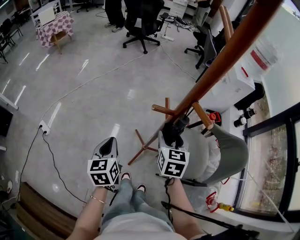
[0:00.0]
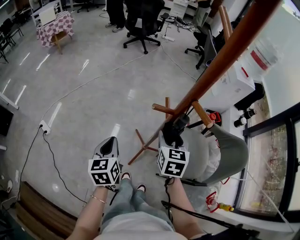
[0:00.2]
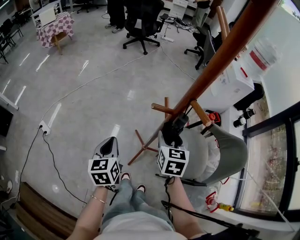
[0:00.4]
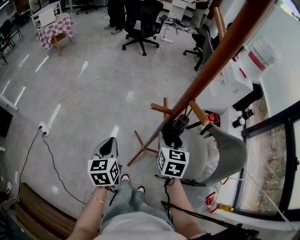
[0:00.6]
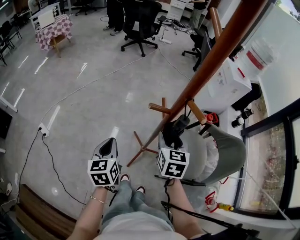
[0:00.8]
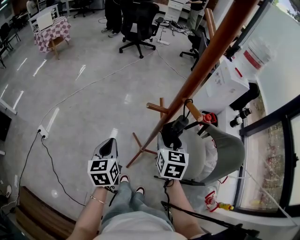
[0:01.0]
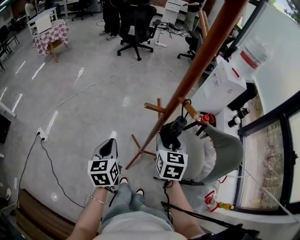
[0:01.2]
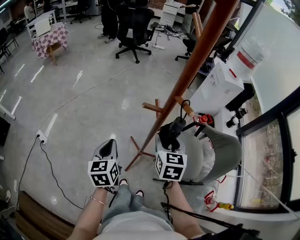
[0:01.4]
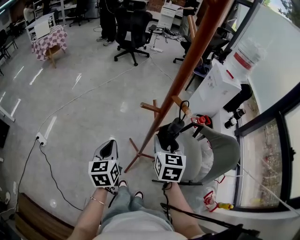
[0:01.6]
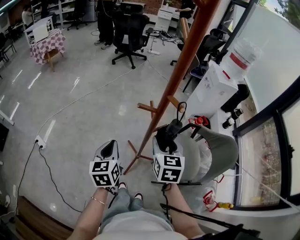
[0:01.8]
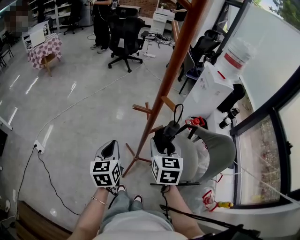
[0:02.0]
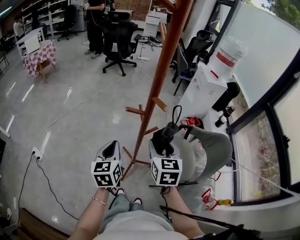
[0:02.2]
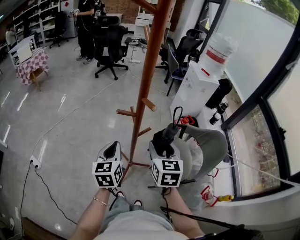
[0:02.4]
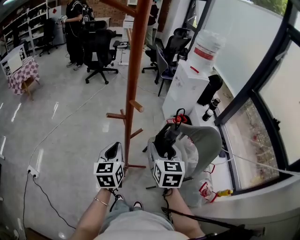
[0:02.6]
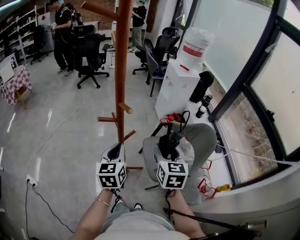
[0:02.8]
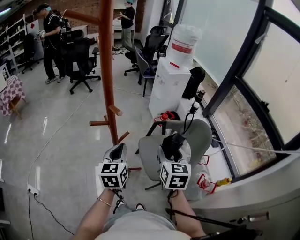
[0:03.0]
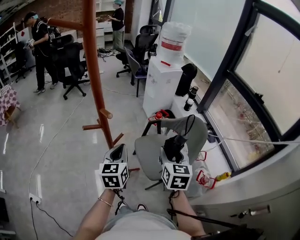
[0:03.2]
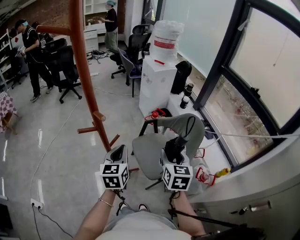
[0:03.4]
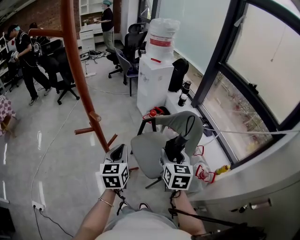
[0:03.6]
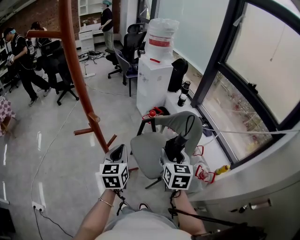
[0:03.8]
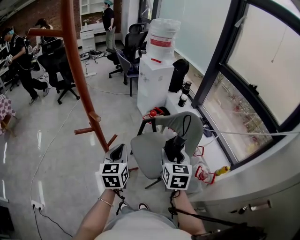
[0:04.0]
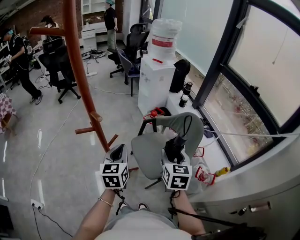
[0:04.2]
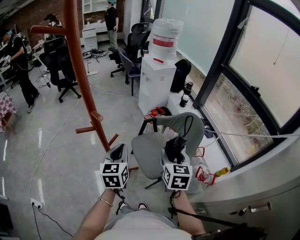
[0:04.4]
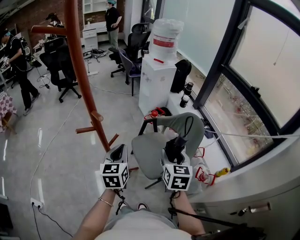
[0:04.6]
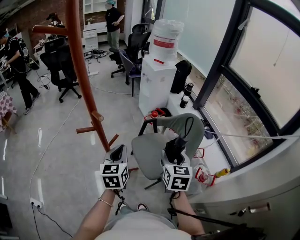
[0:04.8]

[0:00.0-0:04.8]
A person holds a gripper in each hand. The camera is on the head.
0:00.0 to 0:01.6: The right gripper ends up about 5 cm from where it was.
0:01.6 to 0:03.2: The left gripper ends up approximately 25 cm from where it was, and turns by about 30 degrees. The right gripper changes place by approximately 25 cm, and swivels some 30 degrees.
0:03.2 to 0:04.8: There are only small adjustments of the grippers.

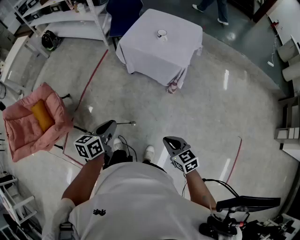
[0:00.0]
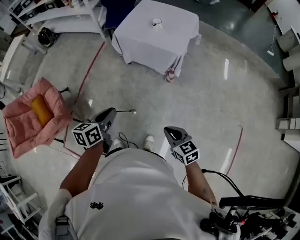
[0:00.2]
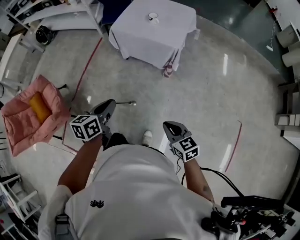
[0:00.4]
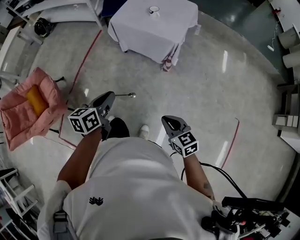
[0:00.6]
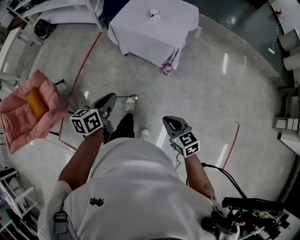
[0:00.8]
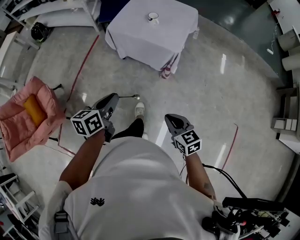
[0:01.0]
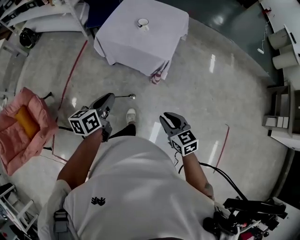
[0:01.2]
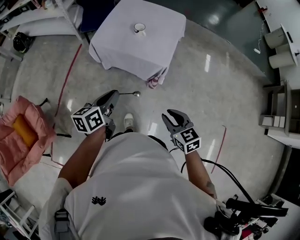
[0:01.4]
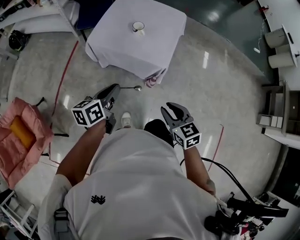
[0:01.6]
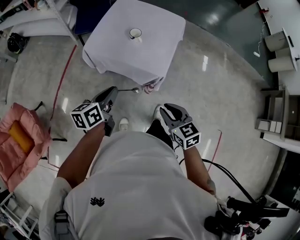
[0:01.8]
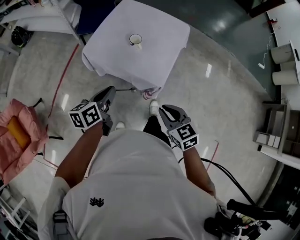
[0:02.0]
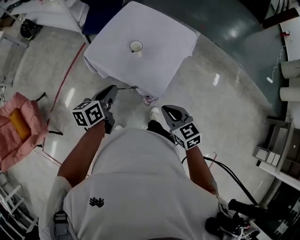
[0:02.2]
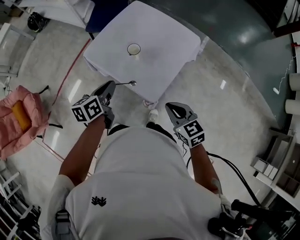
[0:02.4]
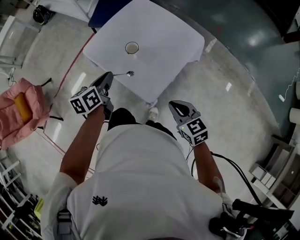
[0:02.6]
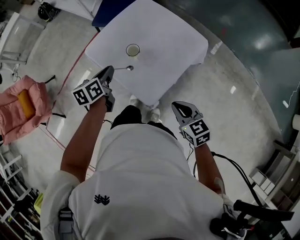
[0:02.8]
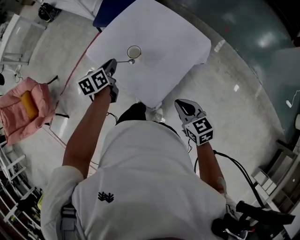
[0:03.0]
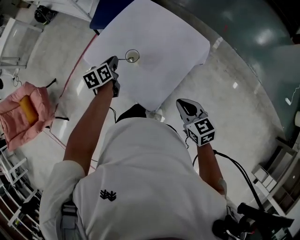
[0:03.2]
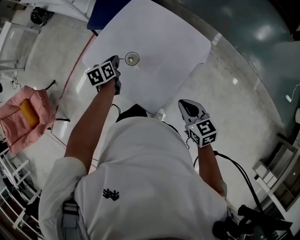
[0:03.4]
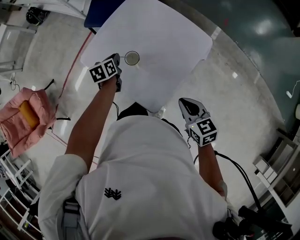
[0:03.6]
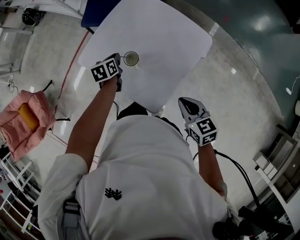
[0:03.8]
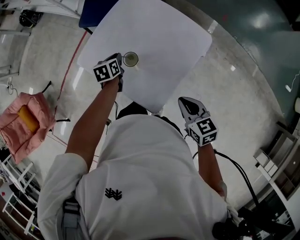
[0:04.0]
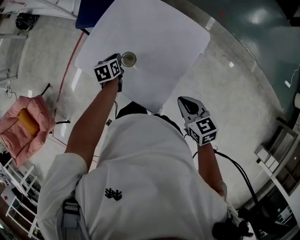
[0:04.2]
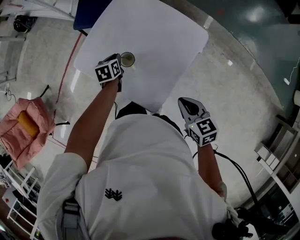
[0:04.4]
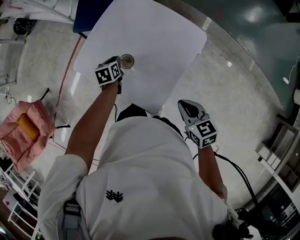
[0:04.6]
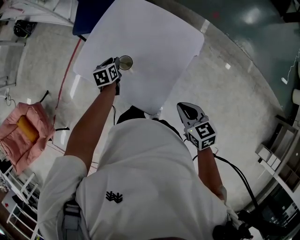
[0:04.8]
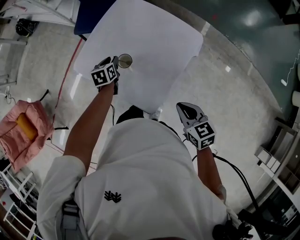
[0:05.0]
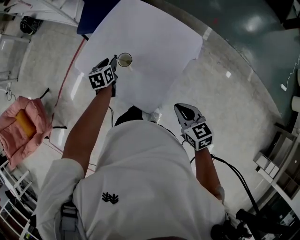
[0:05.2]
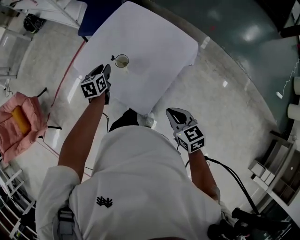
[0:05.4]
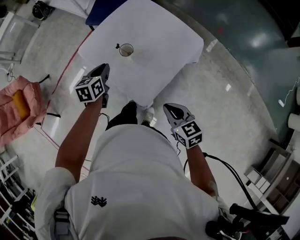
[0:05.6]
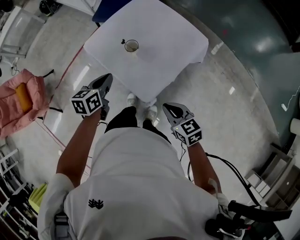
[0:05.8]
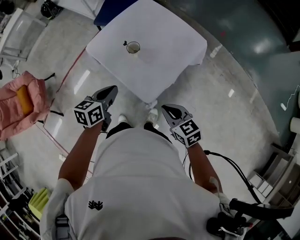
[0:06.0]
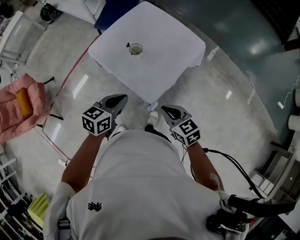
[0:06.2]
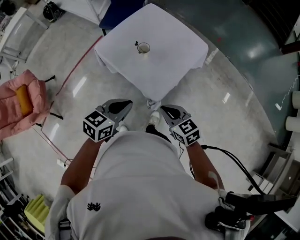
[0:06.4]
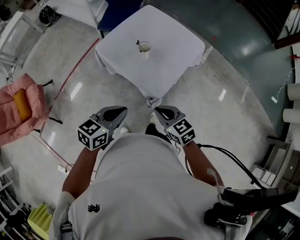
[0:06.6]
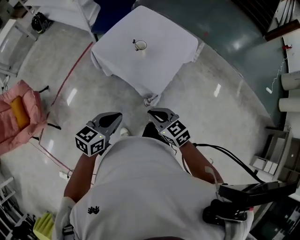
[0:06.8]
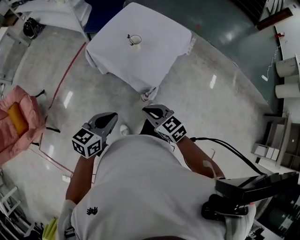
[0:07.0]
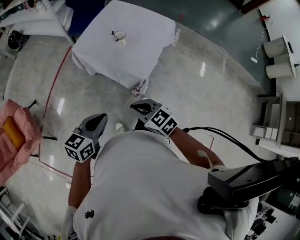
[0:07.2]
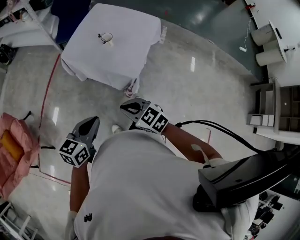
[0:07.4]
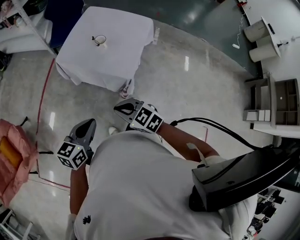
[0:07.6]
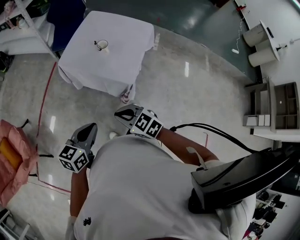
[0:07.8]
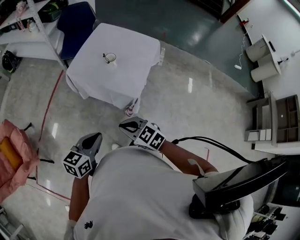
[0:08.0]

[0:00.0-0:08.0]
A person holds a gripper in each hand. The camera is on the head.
0:00.0 to 0:01.6: The left gripper moves forward and to the right, about 35 cm. The right gripper is displaced forward by about 30 cm, and opens its fingers.
0:01.6 to 0:03.2: Both grippers are carried about 40 cm. The left gripper swivels approximately 40 degrees, while the right gripper turns by approximately 20 degrees, and closes up.
0:03.2 to 0:04.8: The left gripper heads downward and forward, covering some 10 cm.
0:04.8 to 0:06.4: The left gripper heads backward and upward, covering roughly 40 cm, swivels roughly 40 degrees, and closes; the right gripper travels backward and to the left by some 20 cm, and swivels about 20 degrees.
0:06.4 to 0:08.0: The right gripper shifts roughly 25 cm to the left and backward, while the left gripper goes some 25 cm backward and to the left.

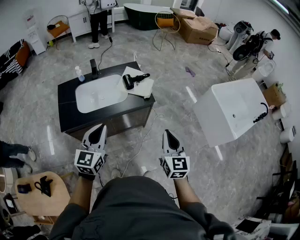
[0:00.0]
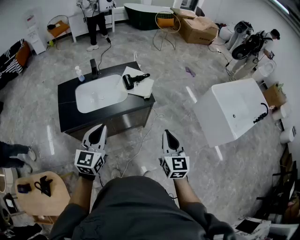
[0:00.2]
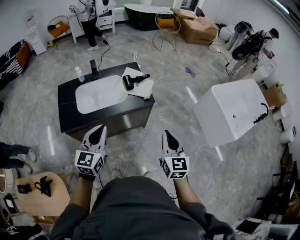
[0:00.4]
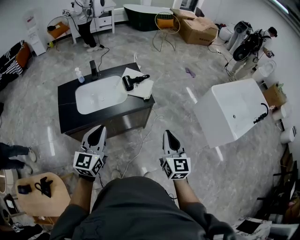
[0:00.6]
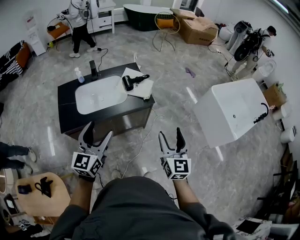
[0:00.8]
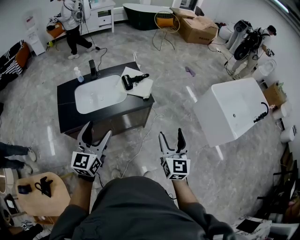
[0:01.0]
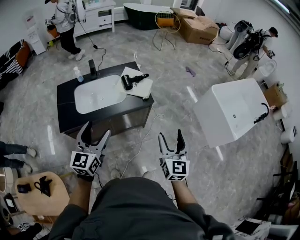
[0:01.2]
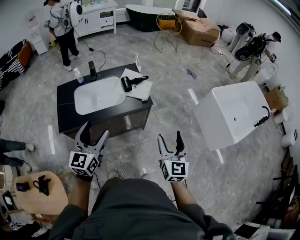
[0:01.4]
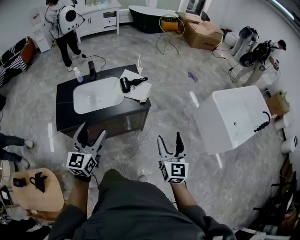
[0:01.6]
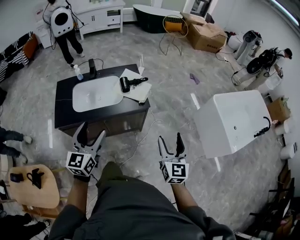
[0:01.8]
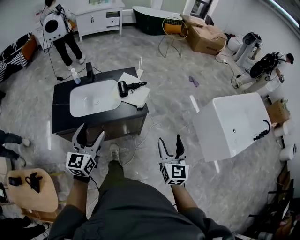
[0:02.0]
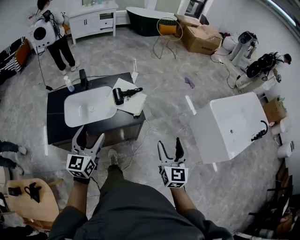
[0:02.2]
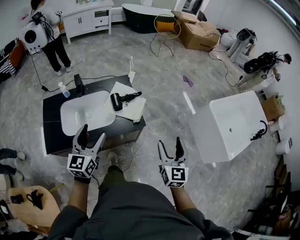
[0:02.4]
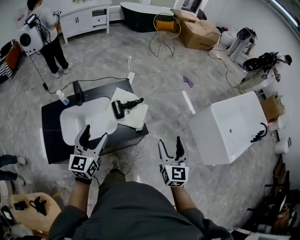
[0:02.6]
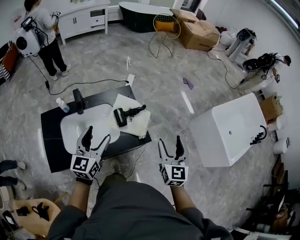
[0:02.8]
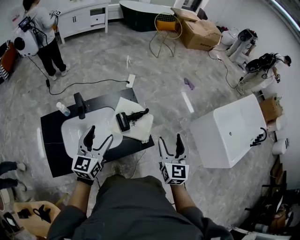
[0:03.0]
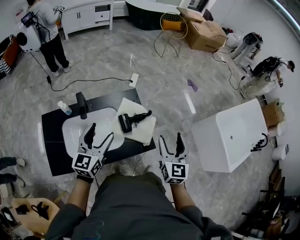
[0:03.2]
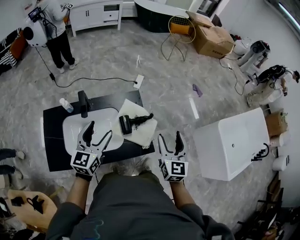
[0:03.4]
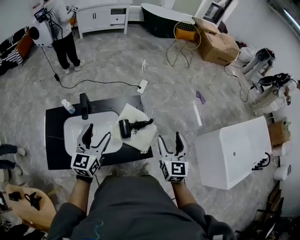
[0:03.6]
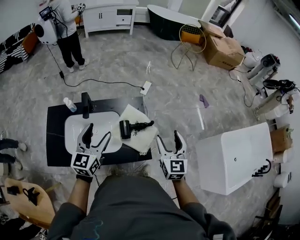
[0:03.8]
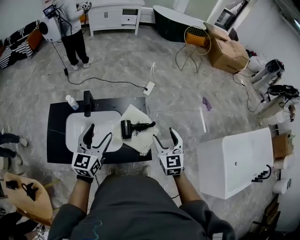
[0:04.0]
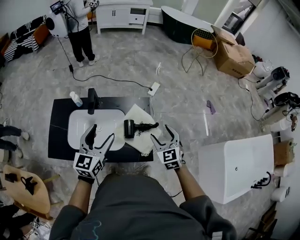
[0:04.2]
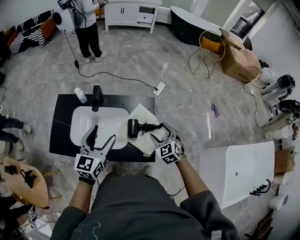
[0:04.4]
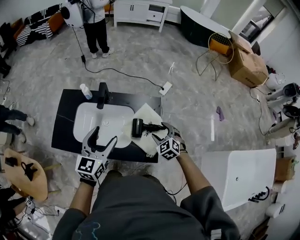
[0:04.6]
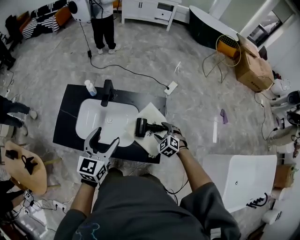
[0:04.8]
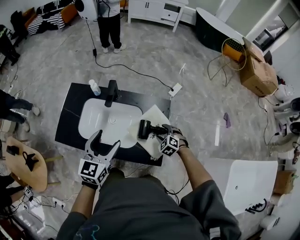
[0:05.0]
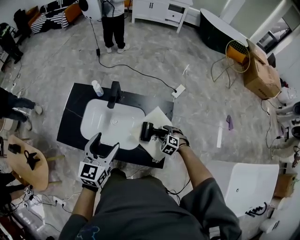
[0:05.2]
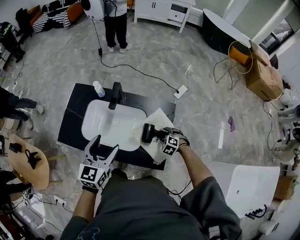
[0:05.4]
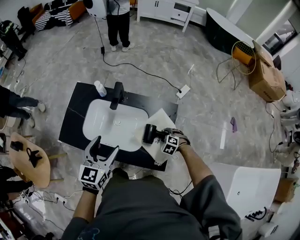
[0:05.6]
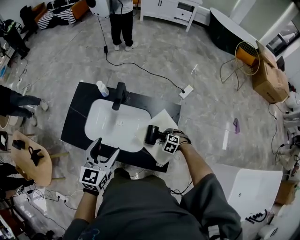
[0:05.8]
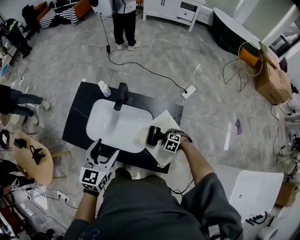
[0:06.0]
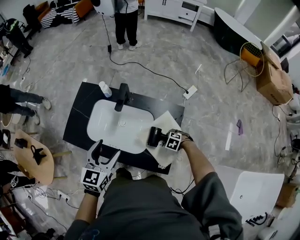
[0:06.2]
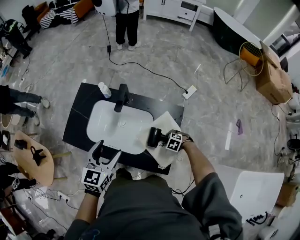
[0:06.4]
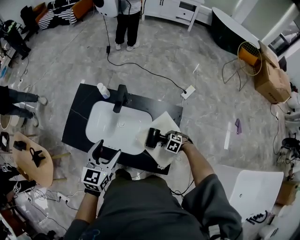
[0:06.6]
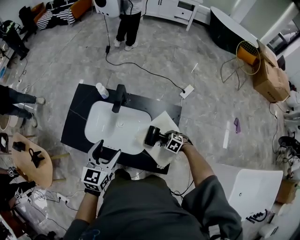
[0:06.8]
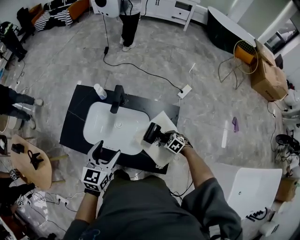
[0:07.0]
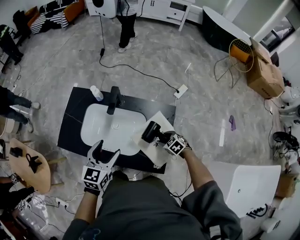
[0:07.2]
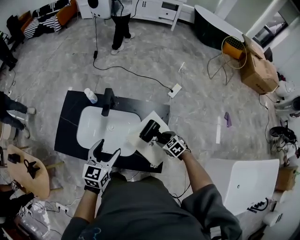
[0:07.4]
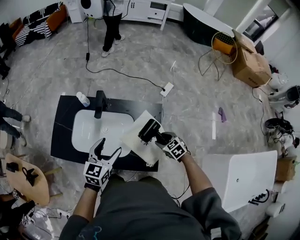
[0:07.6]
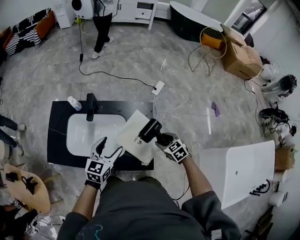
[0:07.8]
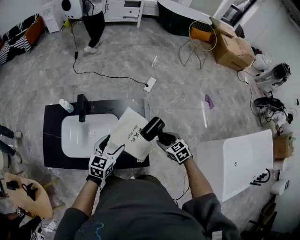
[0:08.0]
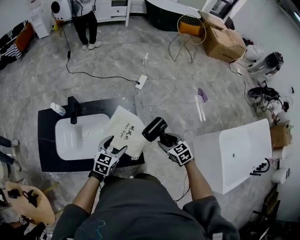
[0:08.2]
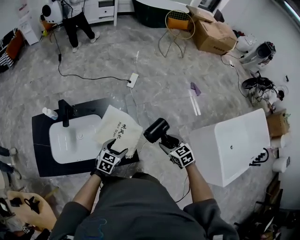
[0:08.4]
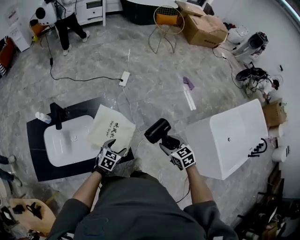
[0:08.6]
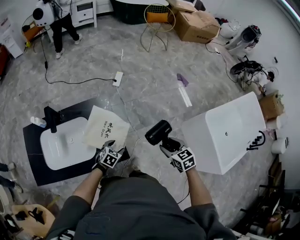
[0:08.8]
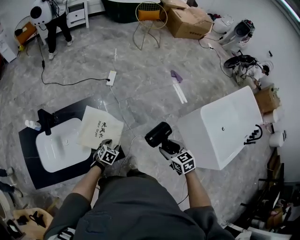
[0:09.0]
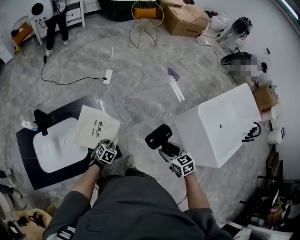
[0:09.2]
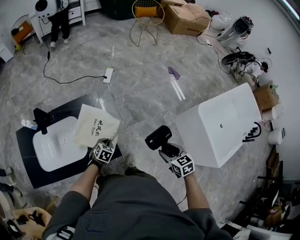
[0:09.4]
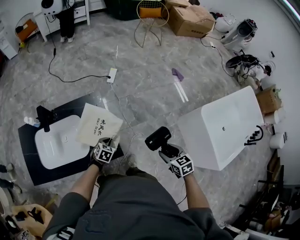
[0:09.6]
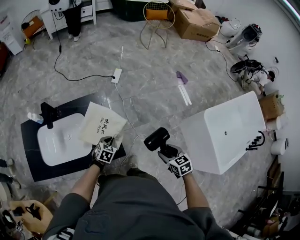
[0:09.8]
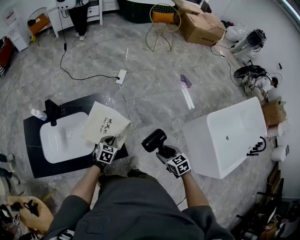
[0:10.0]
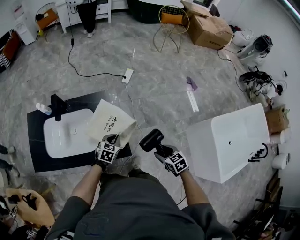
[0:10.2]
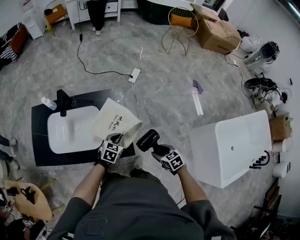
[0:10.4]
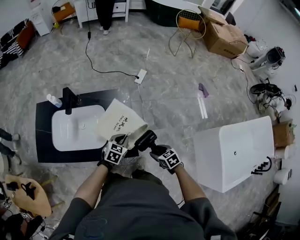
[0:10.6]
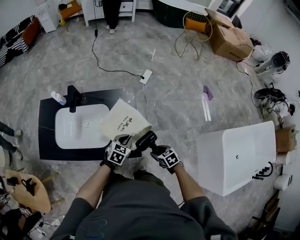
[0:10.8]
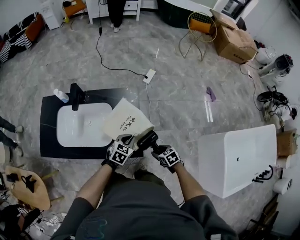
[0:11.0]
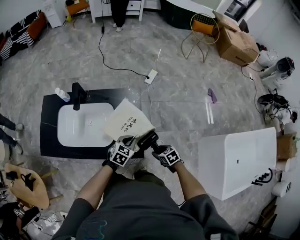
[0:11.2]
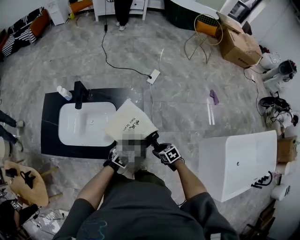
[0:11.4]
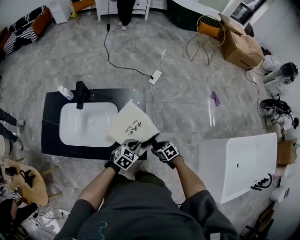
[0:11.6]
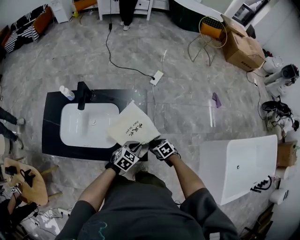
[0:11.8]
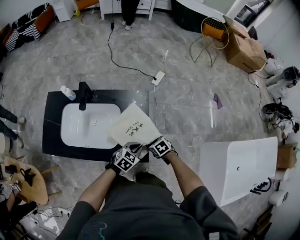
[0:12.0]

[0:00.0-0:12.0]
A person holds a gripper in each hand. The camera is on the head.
0:00.0 to 0:01.6: The left gripper opens up. Meanwhile the right gripper heads to the right, covering roughly 5 cm, and opens its fingers.
0:01.6 to 0:03.0: Both grippers move forward, some 35 cm.
0:03.0 to 0:04.4: The left gripper rotates about 20 degrees; the right gripper shifts by approximately 20 cm, and changes its angle by approximately 60 degrees.
0:04.4 to 0:06.0: The left gripper changes place by roughly 10 cm; the right gripper heads downward, covering approximately 25 cm, and tilts its fingers approximately 40 degrees downward.
0:06.0 to 0:07.6: The right gripper is displaced upward by about 10 cm, and rotates some 40 degrees. The left gripper shifts by approximately 10 cm.
0:07.6 to 0:09.0: The left gripper shifts by about 35 cm, and angles its fingers downward, by roughly 30 degrees, while the right gripper changes place by about 35 cm, and rotates some 40 degrees.
0:09.0 to 0:10.4: The right gripper travels downward and to the left by roughly 15 cm, and swivels about 20 degrees, while the left gripper goes some 10 cm upward, turns by roughly 20 degrees, and closes its fingers.
0:10.4 to 0:12.0: The right gripper goes roughly 20 cm forward, to the left and downward, and changes its angle by approximately 20 degrees.
